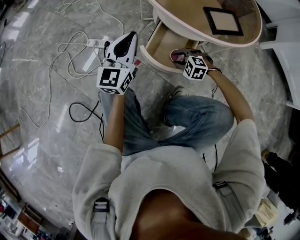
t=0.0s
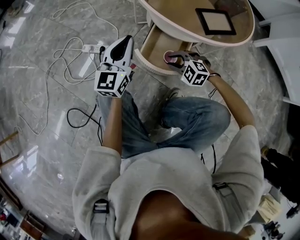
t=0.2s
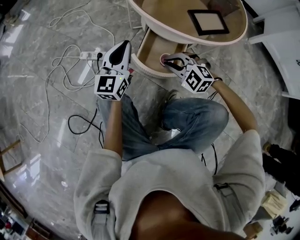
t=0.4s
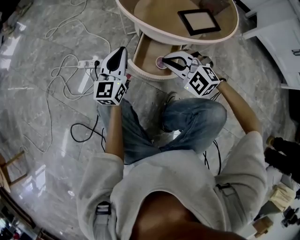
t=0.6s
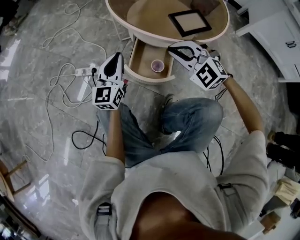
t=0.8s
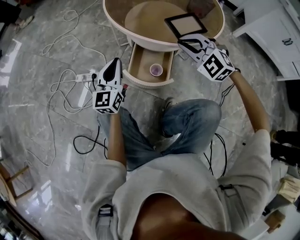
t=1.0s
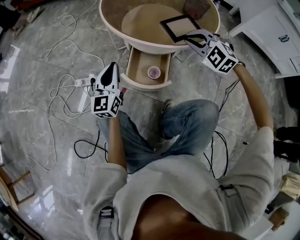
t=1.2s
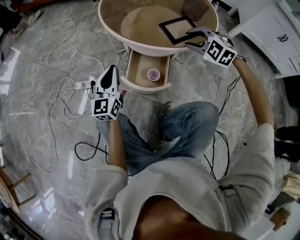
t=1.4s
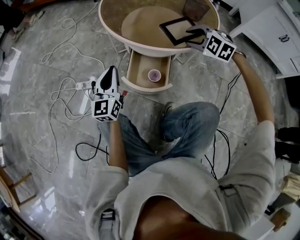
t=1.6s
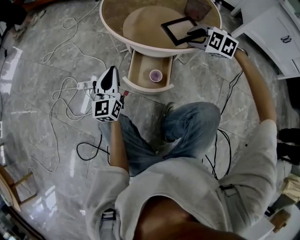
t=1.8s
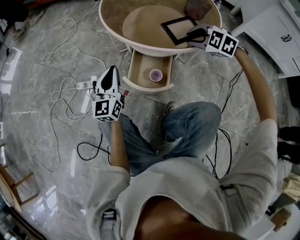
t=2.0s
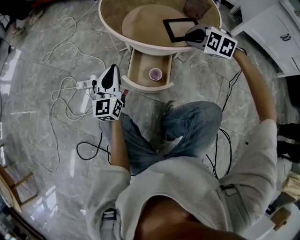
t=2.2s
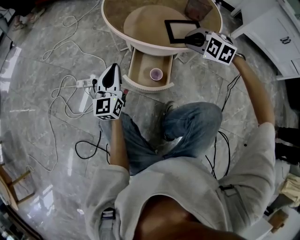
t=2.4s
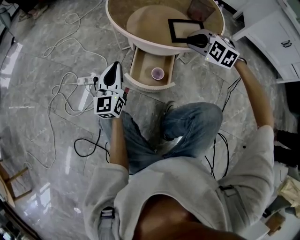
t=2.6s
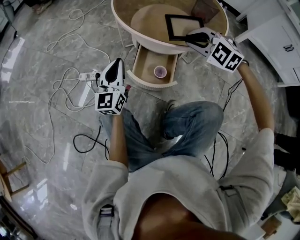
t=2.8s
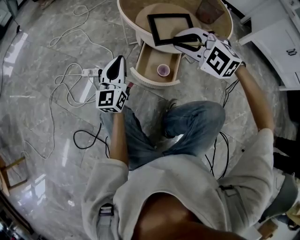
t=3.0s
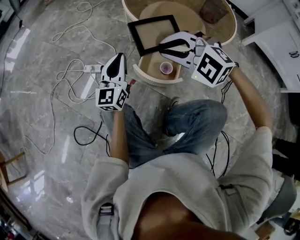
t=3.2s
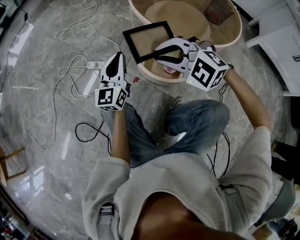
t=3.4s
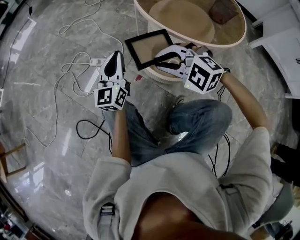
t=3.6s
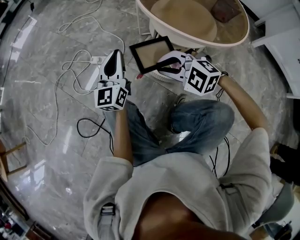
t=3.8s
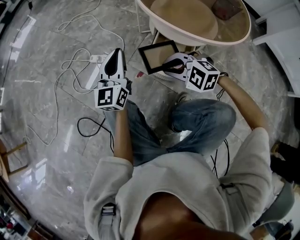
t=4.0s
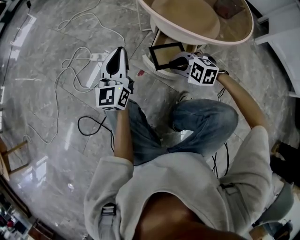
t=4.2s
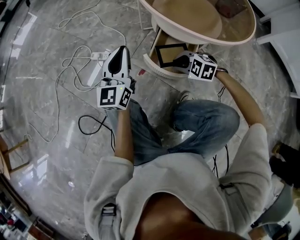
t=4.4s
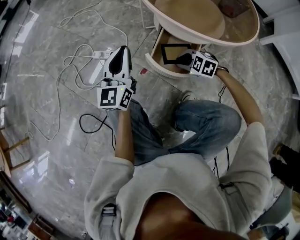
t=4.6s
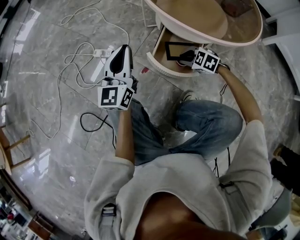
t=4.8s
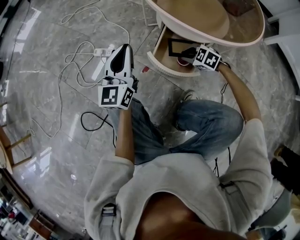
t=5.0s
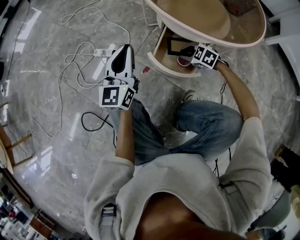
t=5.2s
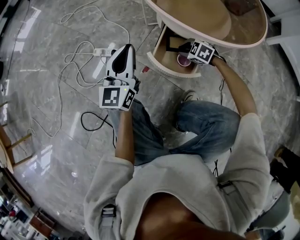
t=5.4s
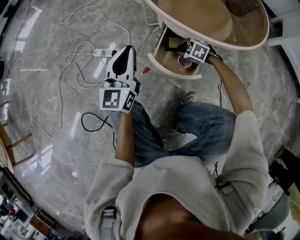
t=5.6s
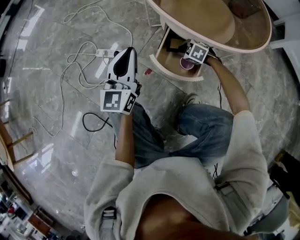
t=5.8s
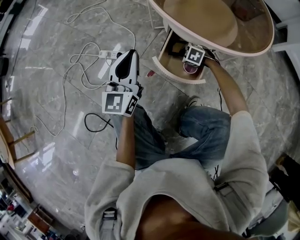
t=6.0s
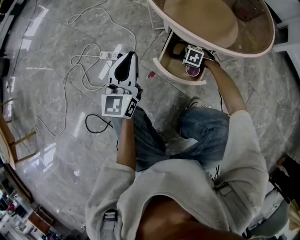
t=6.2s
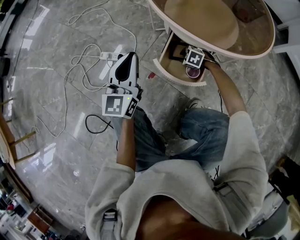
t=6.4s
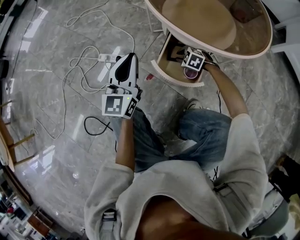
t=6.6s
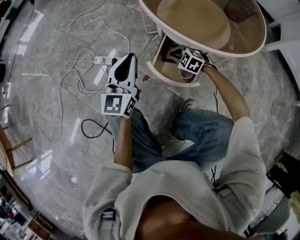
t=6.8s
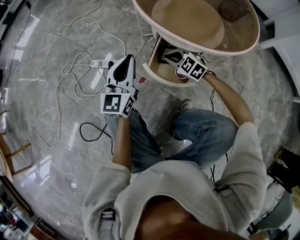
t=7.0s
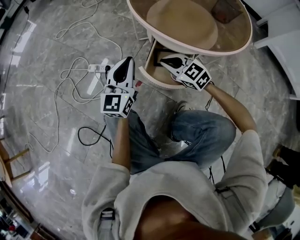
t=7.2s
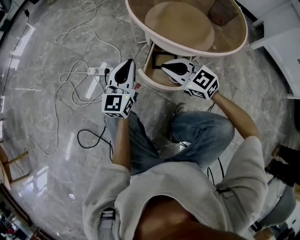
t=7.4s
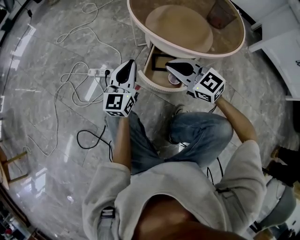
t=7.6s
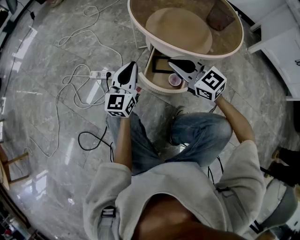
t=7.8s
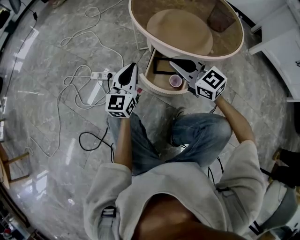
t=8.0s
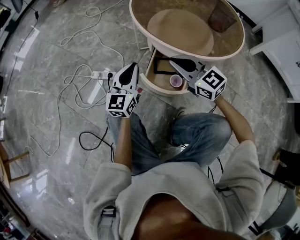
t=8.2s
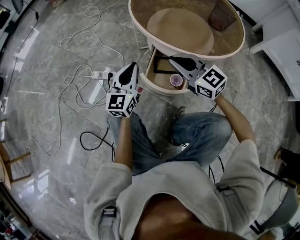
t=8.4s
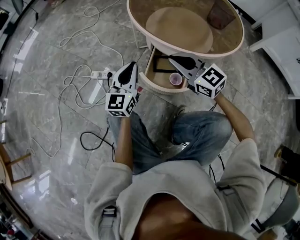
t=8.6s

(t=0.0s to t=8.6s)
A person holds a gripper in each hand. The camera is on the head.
t=0.0s - t=1.4s: The right gripper goes roughly 30 cm upward and to the right, turns by some 20 degrees, and closes, then opens again.
t=1.4s - t=2.8s: The right gripper goes approximately 5 cm to the left.
t=2.8s - t=4.4s: The right gripper is displaced downward and to the left by about 25 cm, and changes its angle by about 30 degrees. The left gripper shifts approximately 5 cm to the left.
t=4.4s - t=5.8s: The right gripper shifts approximately 15 cm downward, forward and to the right.
t=5.8s - t=7.2s: The right gripper is displaced upward by some 20 cm, and tilts its fingers some 30 degrees upward.
t=7.2s - t=8.6s: The right gripper moves upward, some 15 cm.

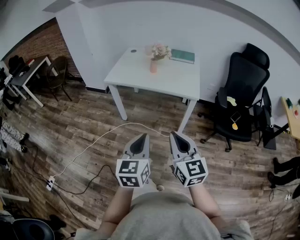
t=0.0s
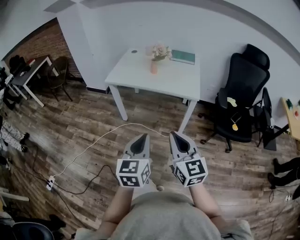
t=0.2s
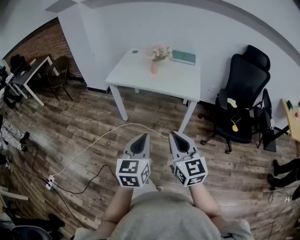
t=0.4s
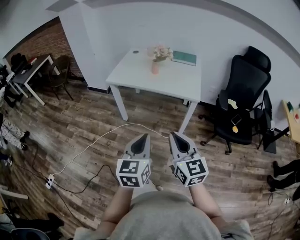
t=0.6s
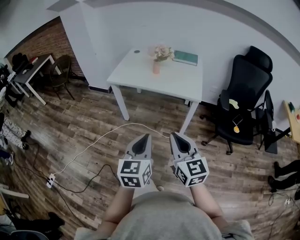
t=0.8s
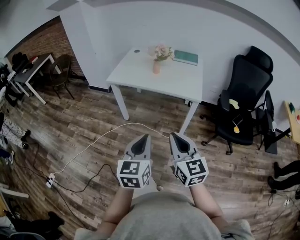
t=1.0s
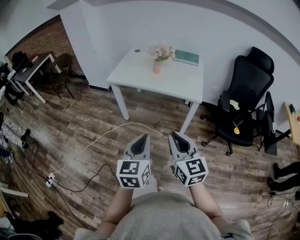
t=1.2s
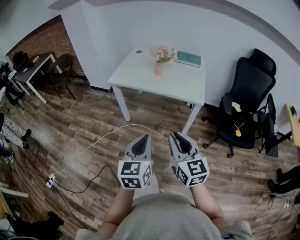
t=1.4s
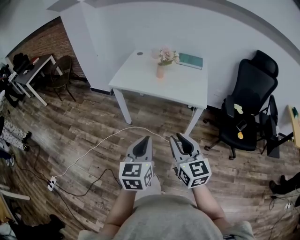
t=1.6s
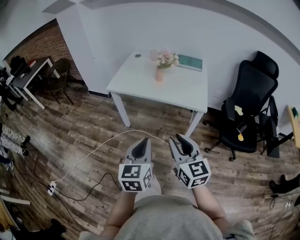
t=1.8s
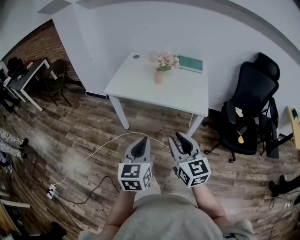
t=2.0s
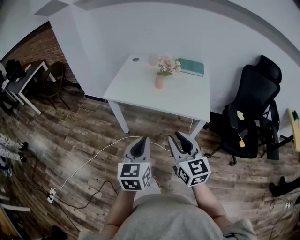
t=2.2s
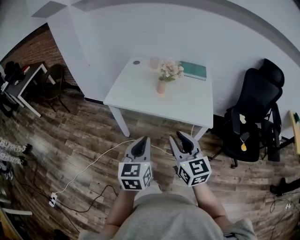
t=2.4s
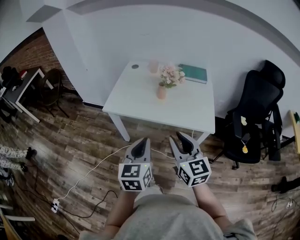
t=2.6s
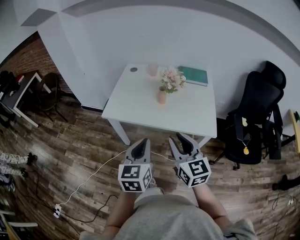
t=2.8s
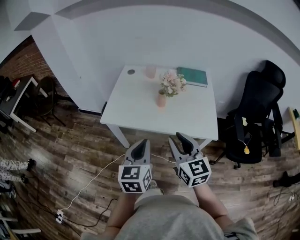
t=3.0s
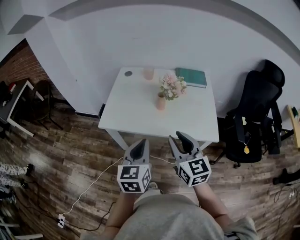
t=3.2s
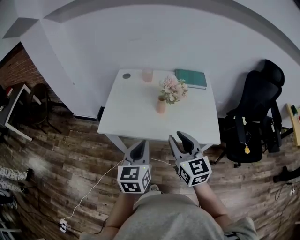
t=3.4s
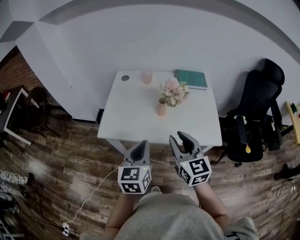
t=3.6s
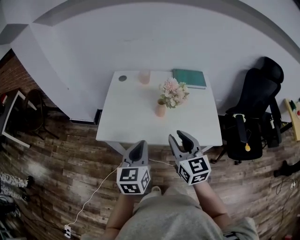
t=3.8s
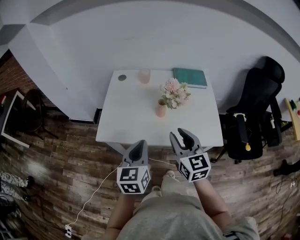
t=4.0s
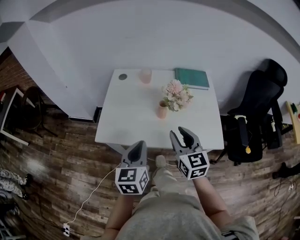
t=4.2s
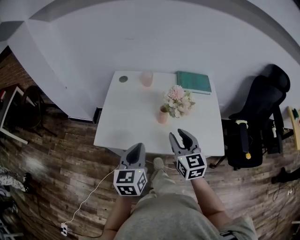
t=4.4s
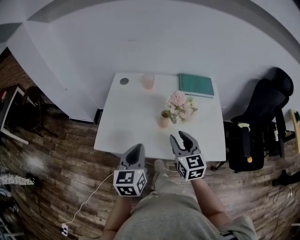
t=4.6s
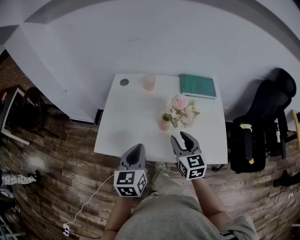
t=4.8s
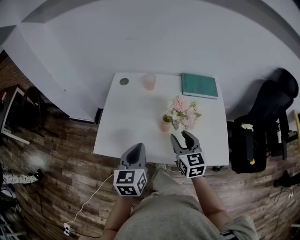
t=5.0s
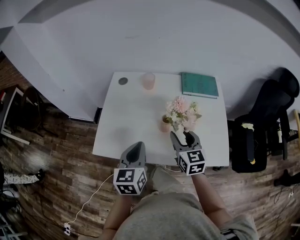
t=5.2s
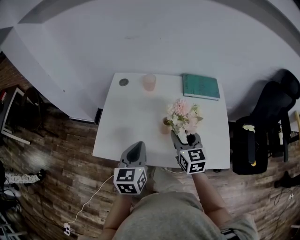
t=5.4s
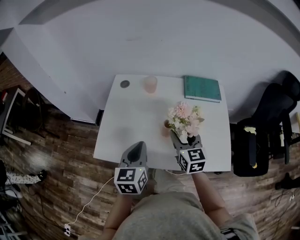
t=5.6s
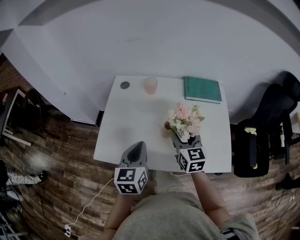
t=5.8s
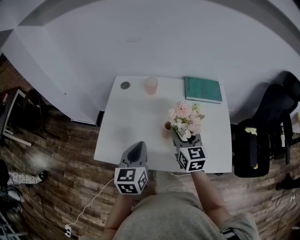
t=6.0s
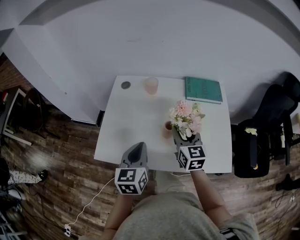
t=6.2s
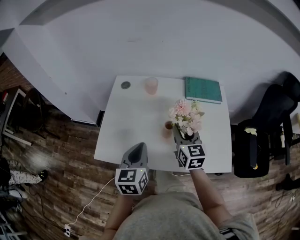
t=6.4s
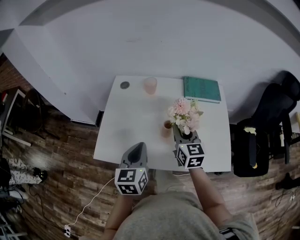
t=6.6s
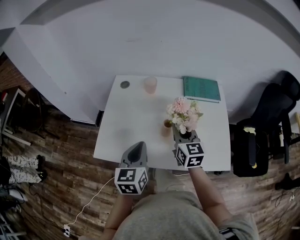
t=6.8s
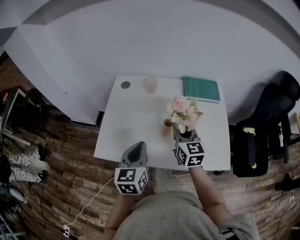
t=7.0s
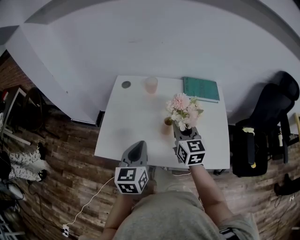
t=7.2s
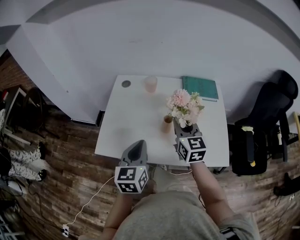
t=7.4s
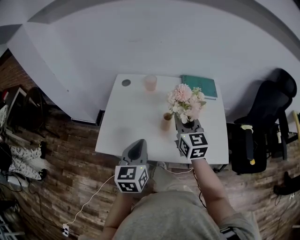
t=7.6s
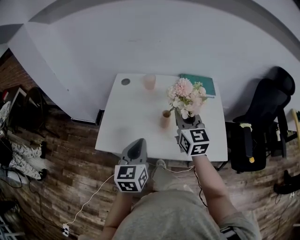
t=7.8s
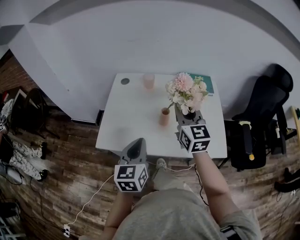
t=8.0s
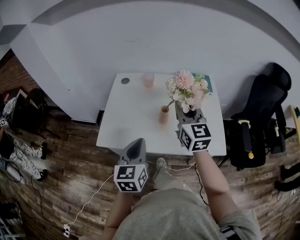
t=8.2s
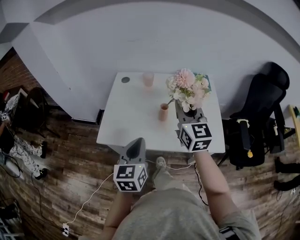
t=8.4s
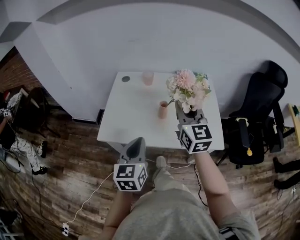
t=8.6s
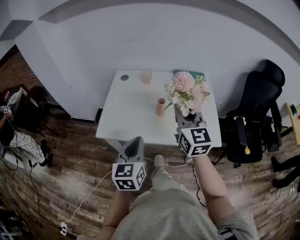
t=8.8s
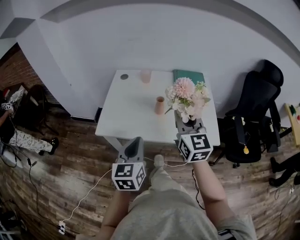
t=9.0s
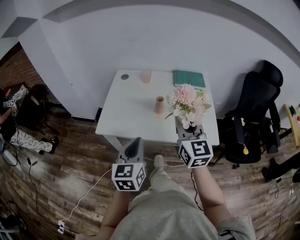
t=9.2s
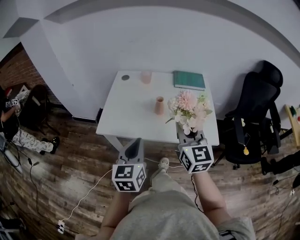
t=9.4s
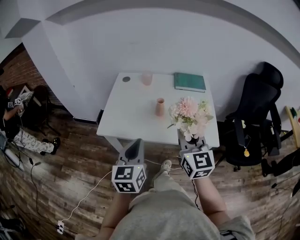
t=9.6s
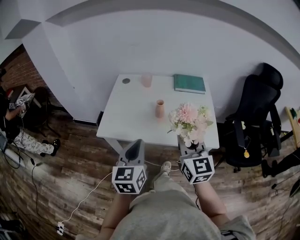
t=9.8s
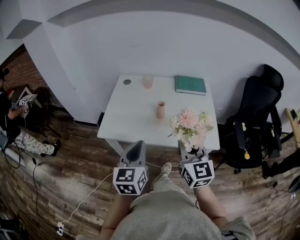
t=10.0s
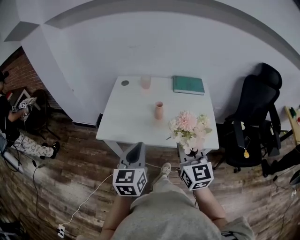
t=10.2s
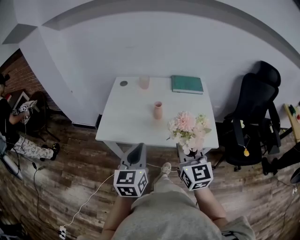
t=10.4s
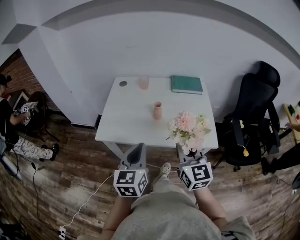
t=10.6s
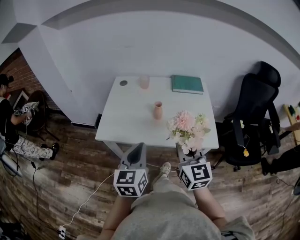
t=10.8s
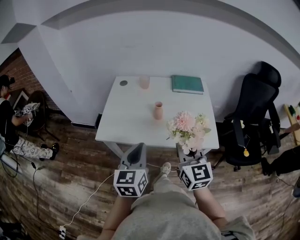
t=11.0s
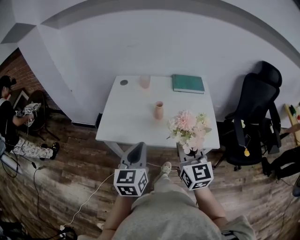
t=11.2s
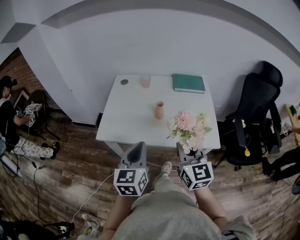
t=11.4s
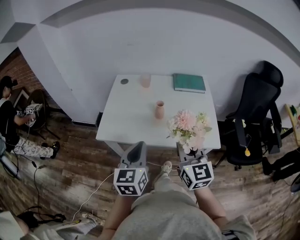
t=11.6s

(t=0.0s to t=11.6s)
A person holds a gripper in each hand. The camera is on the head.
t=0.0s - t=1.4s: The grippers stay close to where they were, moving slightly.
t=1.4s - t=2.8s: Both grippers move forward, some 30 cm.
t=2.8s - t=4.4s: Both grippers move forward, approximately 20 cm.
t=4.4s - t=5.8s: Both grippers move forward, about 10 cm. The right gripper opens.
t=5.8s - t=7.2s: The right gripper closes up.
t=7.2s - t=8.8s: The right gripper heads upward and backward, covering roughly 20 cm. Meanwhile the left gripper travels backward by about 15 cm.
t=8.8s - t=10.2s: The right gripper is displaced backward by about 15 cm.
t=10.2s - t=11.6s: The grippers stay close to where they were, moving slightly.

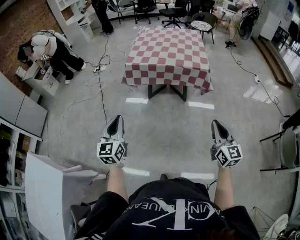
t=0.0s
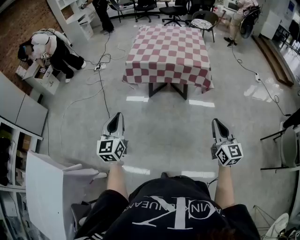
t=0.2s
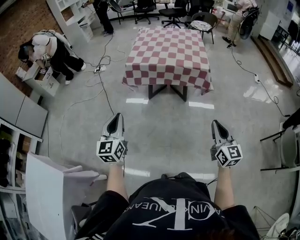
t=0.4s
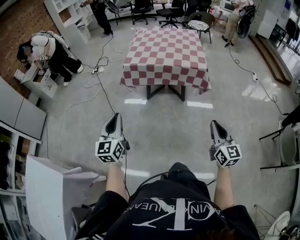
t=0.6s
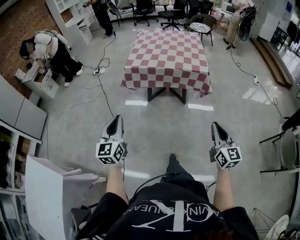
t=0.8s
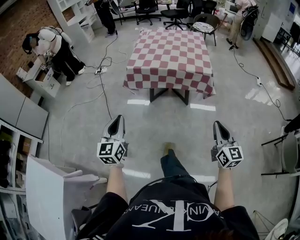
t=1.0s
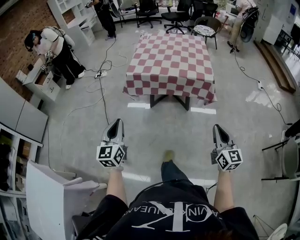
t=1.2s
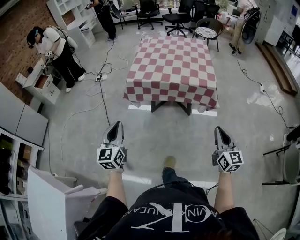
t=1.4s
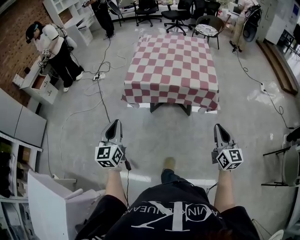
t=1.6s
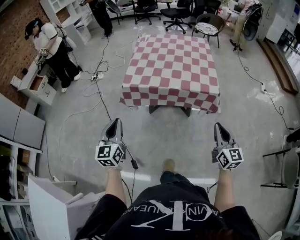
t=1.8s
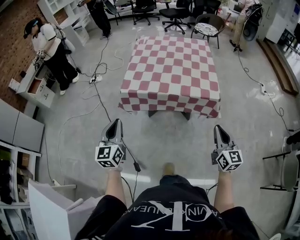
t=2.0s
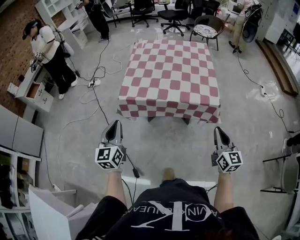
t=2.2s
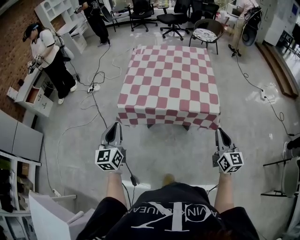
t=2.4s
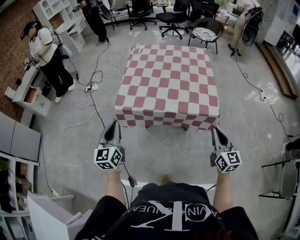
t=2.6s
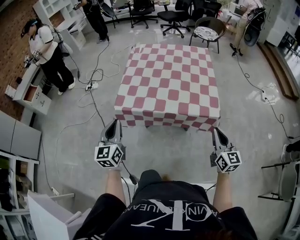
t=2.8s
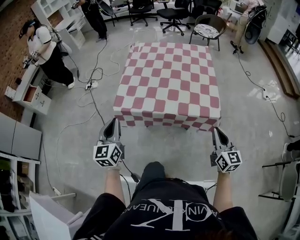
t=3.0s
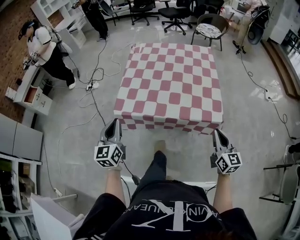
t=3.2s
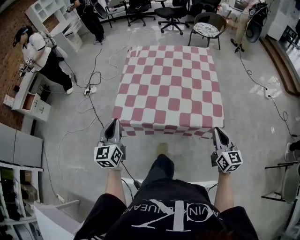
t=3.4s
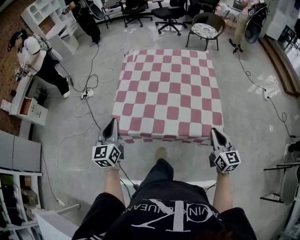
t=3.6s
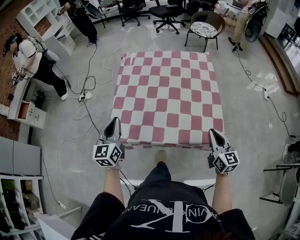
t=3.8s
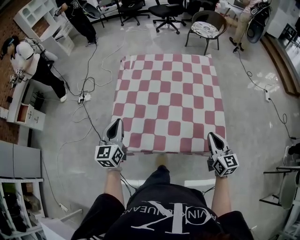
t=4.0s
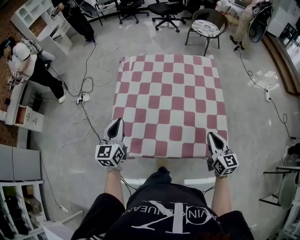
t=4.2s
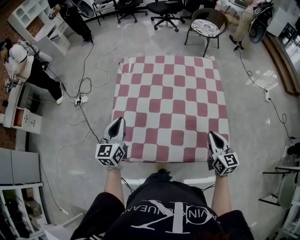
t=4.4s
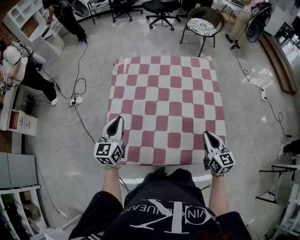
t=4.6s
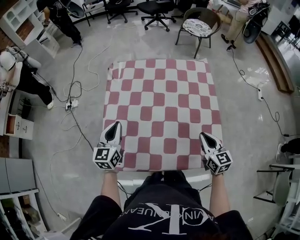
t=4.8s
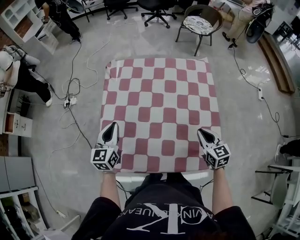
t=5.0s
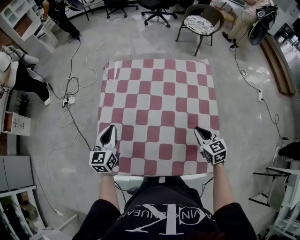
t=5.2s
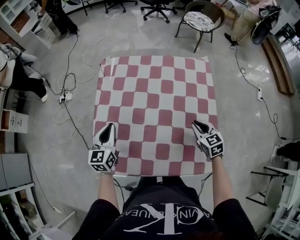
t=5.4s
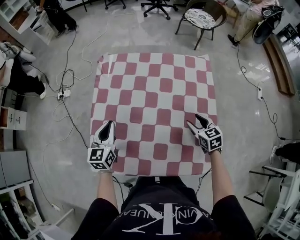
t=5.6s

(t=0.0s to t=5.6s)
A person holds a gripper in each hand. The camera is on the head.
t=0.0s - t=1.4s: Both grippers travel together forward, roughly 15 cm.
t=1.4s - t=2.8s: The two grippers go roughly 25 cm forward.
t=2.8s - t=4.2s: The grippers both shift forward by approximately 25 cm.
t=4.2s - t=5.6s: The left gripper goes roughly 15 cm forward and downward; the right gripper heads forward and downward, covering roughly 20 cm, swivels about 30 degrees, and opens up.
